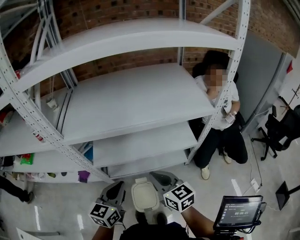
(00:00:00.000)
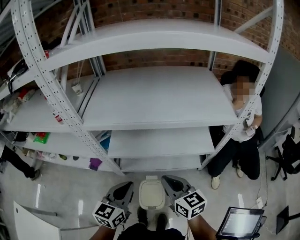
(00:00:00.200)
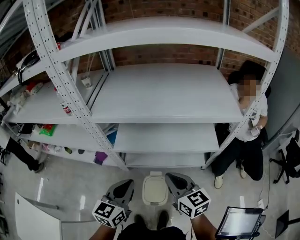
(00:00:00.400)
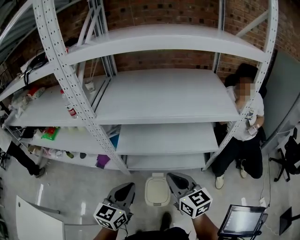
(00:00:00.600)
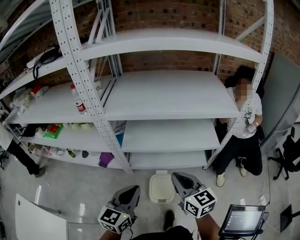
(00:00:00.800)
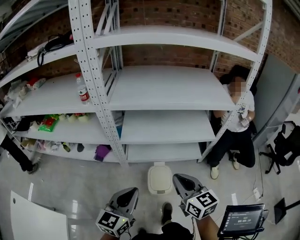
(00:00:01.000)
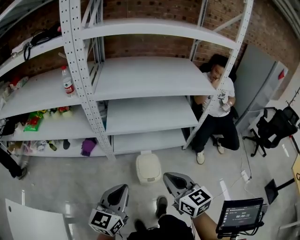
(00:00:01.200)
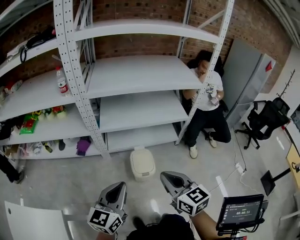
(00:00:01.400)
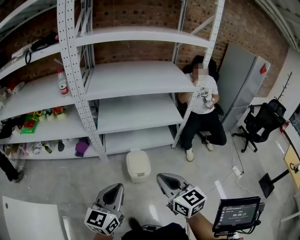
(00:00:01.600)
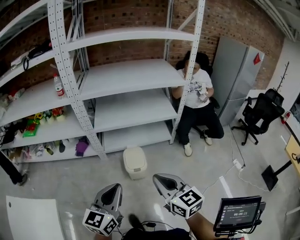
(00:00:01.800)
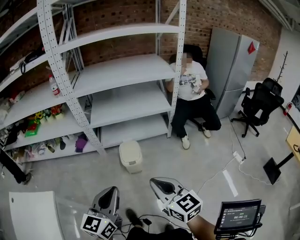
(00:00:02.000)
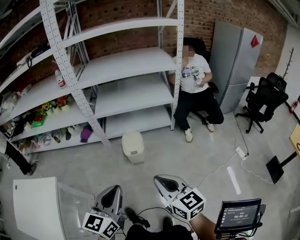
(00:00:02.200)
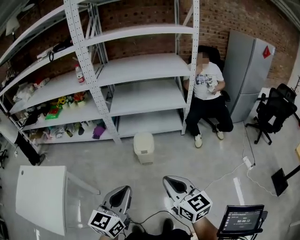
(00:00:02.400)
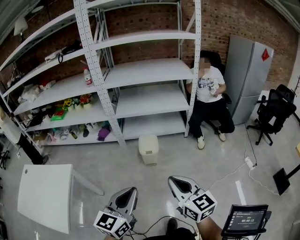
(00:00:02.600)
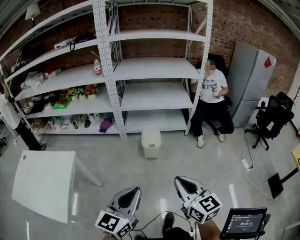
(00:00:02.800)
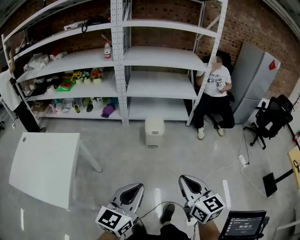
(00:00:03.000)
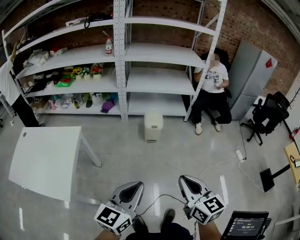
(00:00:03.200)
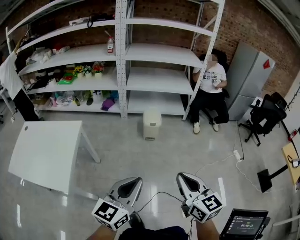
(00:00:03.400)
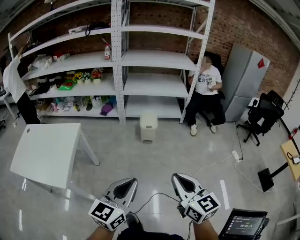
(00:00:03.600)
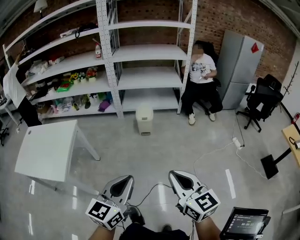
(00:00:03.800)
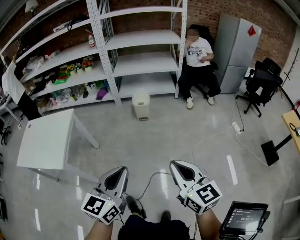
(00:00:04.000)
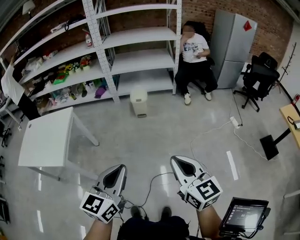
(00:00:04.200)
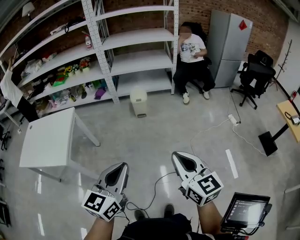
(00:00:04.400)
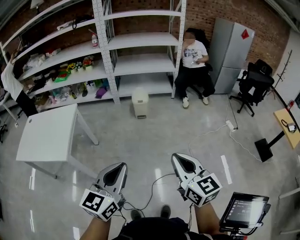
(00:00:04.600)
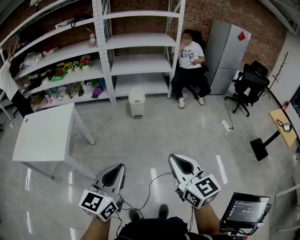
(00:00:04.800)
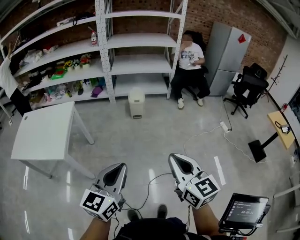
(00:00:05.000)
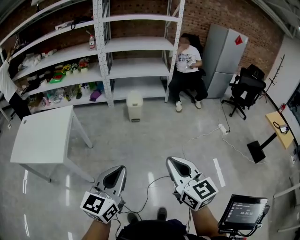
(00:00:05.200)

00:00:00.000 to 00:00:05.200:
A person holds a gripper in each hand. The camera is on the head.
00:00:00.000 to 00:00:01.800: The two grippers travel together, backward, some 40 cm.
00:00:01.800 to 00:00:03.400: The two grippers travel together, backward, some 50 cm.
00:00:03.400 to 00:00:05.200: The two grippers go roughly 20 cm backward.

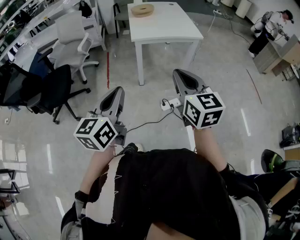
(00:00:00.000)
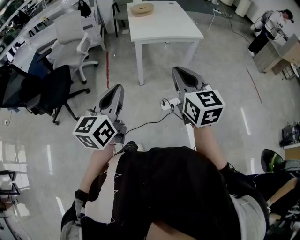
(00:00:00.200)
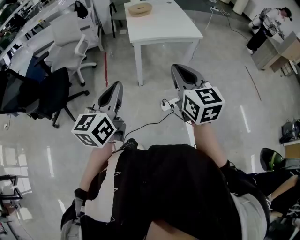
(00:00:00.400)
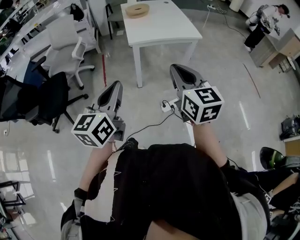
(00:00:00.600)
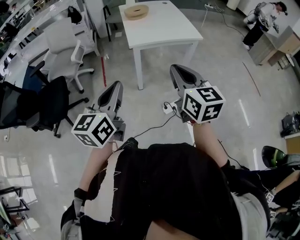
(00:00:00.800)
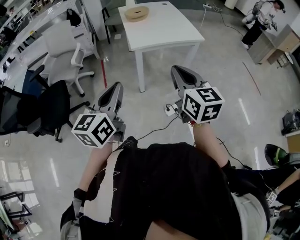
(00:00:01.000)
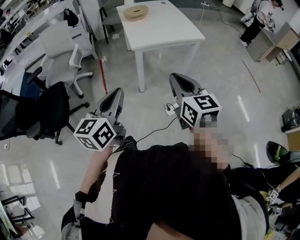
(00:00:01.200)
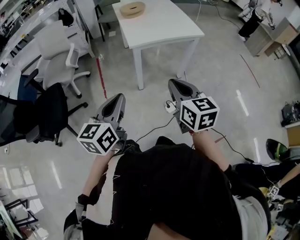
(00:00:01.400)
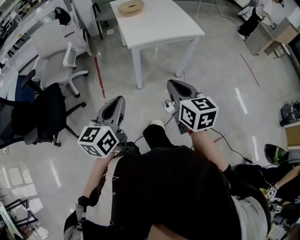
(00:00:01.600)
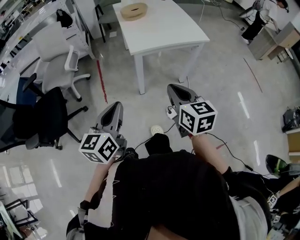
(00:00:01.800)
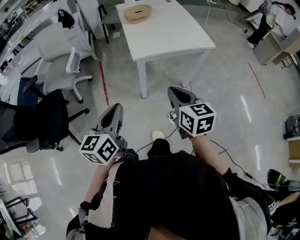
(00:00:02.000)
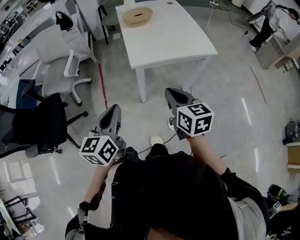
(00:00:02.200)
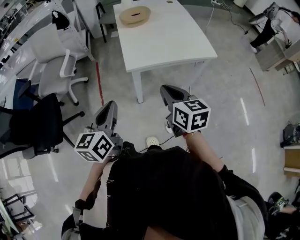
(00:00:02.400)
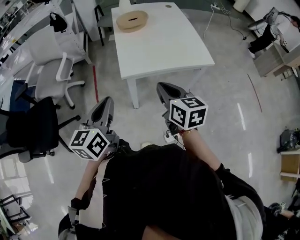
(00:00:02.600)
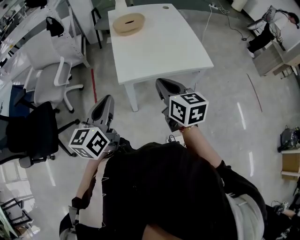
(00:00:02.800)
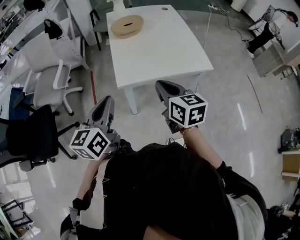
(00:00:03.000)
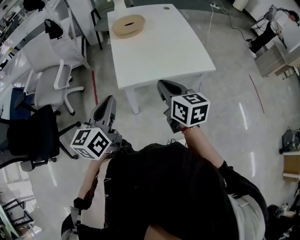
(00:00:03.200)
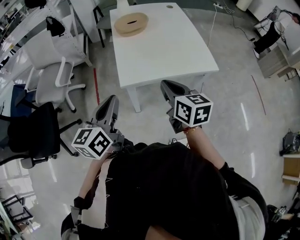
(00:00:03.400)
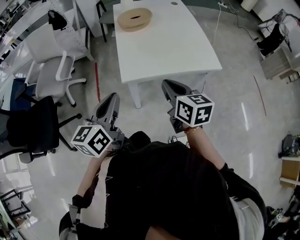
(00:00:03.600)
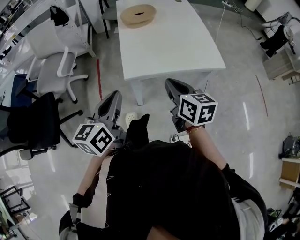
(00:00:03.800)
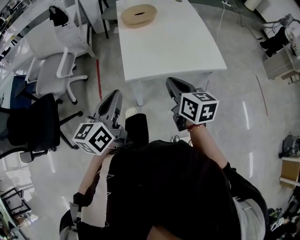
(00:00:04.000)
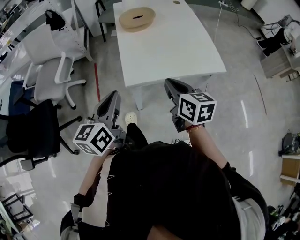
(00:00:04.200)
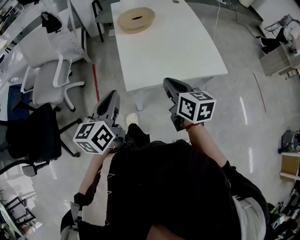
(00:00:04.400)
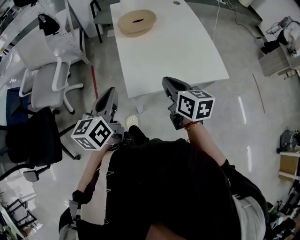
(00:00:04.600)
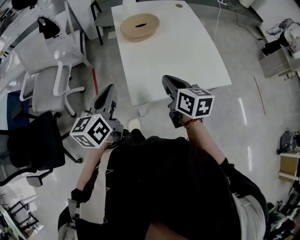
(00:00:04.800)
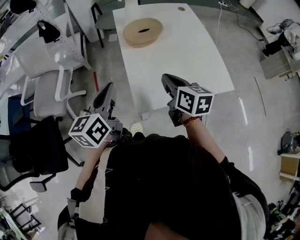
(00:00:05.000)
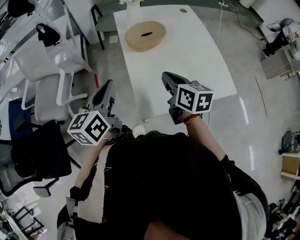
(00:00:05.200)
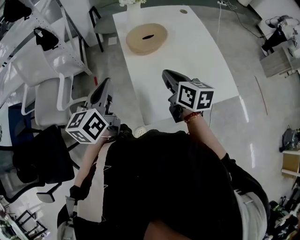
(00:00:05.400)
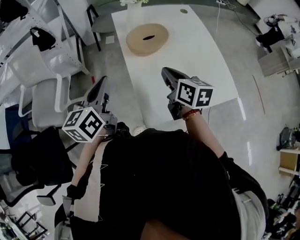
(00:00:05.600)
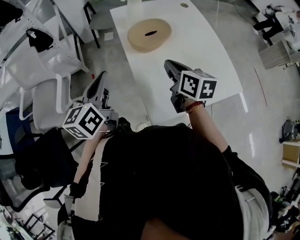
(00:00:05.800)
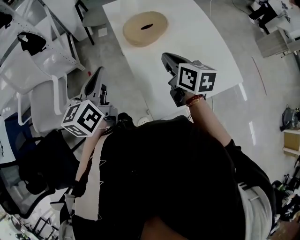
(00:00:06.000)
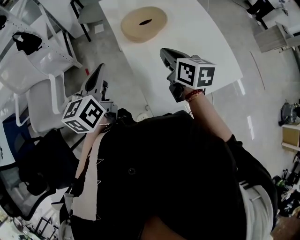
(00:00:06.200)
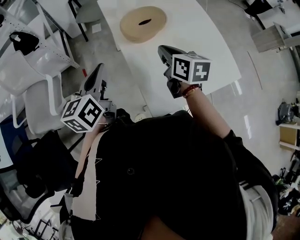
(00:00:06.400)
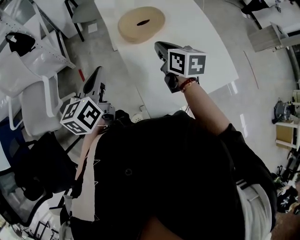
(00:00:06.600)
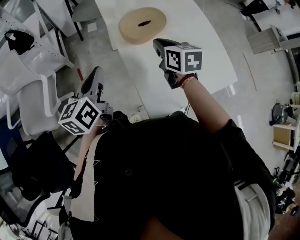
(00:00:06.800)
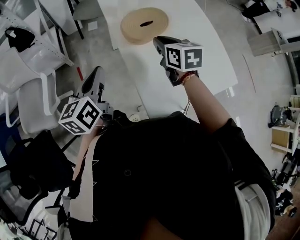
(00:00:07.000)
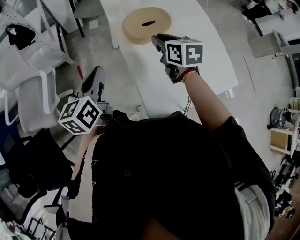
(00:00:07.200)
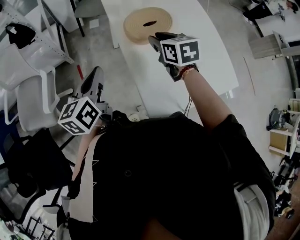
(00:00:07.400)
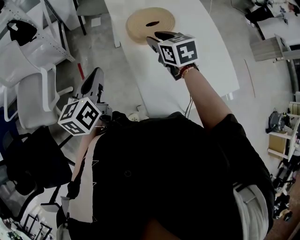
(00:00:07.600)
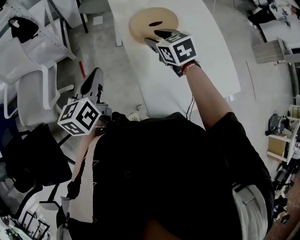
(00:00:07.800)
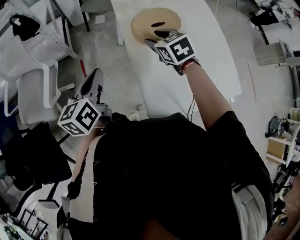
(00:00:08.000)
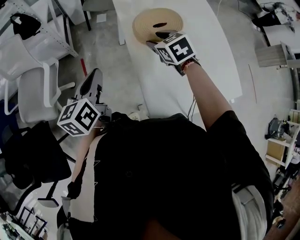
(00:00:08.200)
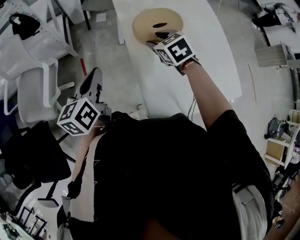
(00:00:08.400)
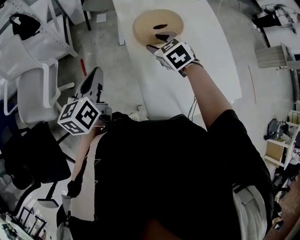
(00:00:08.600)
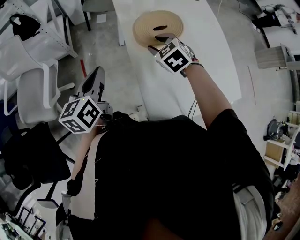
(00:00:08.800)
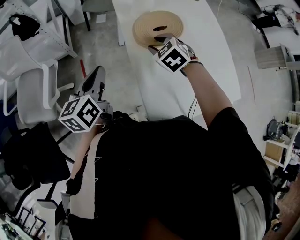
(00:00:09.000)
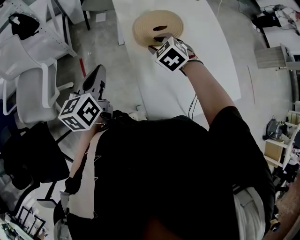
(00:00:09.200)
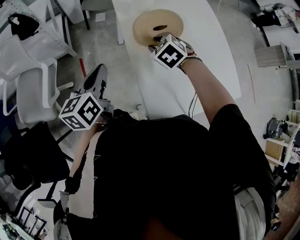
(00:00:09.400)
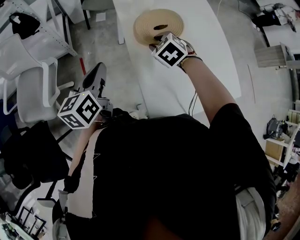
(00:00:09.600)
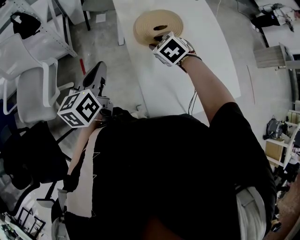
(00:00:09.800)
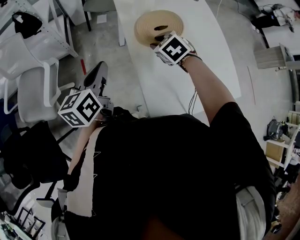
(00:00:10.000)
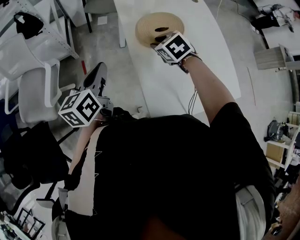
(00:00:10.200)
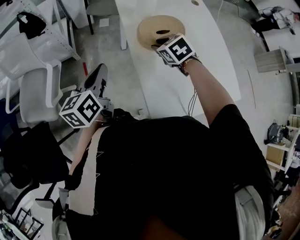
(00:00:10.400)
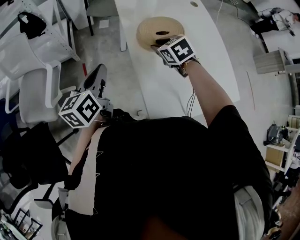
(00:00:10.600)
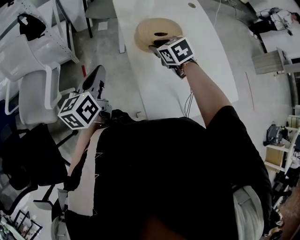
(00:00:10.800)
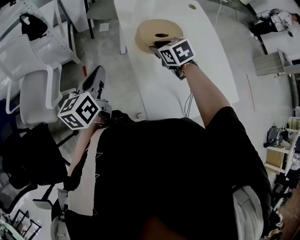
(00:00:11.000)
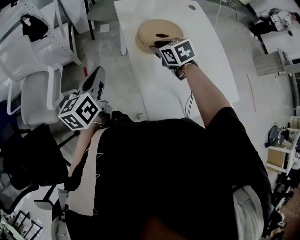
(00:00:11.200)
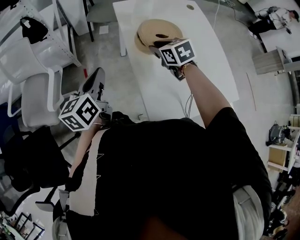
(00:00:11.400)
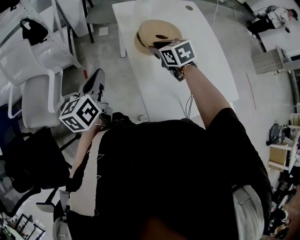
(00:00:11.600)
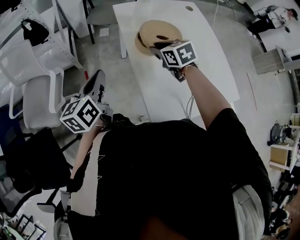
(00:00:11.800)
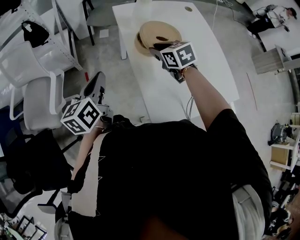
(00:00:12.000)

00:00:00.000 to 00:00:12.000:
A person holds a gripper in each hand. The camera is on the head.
00:00:00.000 to 00:00:01.600: Both grippers move forward, to the left and downward, approximately 20 cm.
00:00:01.600 to 00:00:03.000: Both grippers travel together forward, approximately 30 cm.
00:00:03.000 to 00:00:04.400: Both grippers move forward, about 10 cm.
00:00:04.400 to 00:00:06.000: The left gripper travels forward and to the left by about 30 cm; the right gripper shifts approximately 25 cm forward.
00:00:06.000 to 00:00:07.600: The right gripper travels forward by roughly 10 cm, rotates roughly 30 degrees, and opens its fingers. The left gripper travels downward by about 5 cm.
00:00:07.600 to 00:00:09.000: The right gripper goes approximately 5 cm downward, and rotates about 30 degrees.
00:00:09.000 to 00:00:10.400: The grippers move only a little.
00:00:10.400 to 00:00:12.000: There are only small adjustments of the grippers.

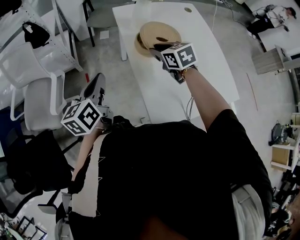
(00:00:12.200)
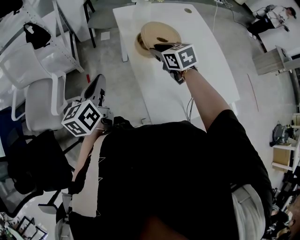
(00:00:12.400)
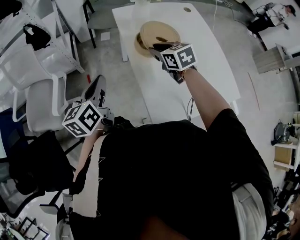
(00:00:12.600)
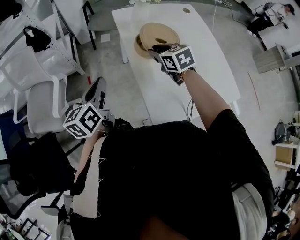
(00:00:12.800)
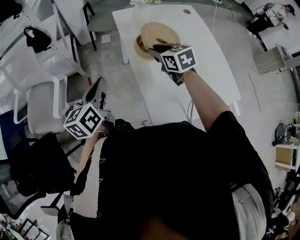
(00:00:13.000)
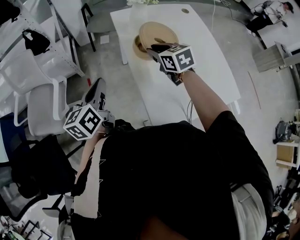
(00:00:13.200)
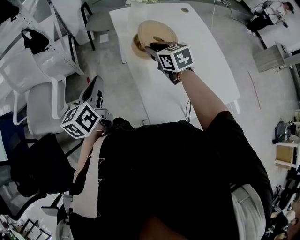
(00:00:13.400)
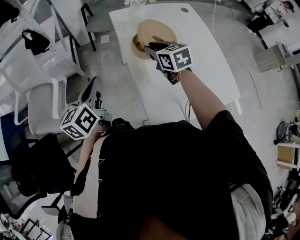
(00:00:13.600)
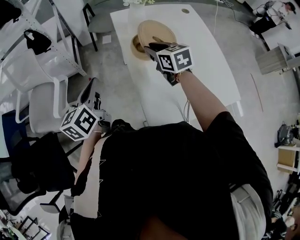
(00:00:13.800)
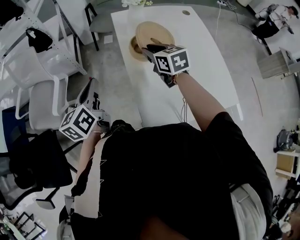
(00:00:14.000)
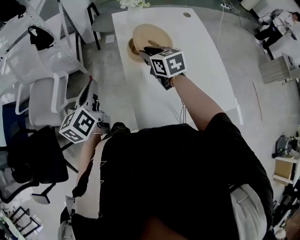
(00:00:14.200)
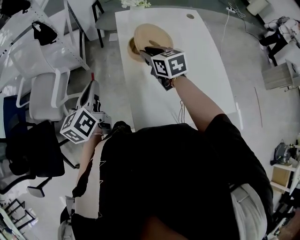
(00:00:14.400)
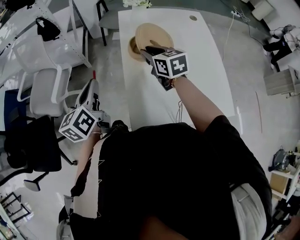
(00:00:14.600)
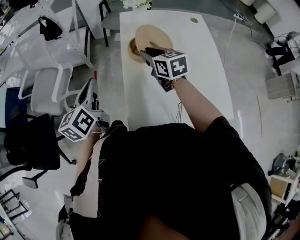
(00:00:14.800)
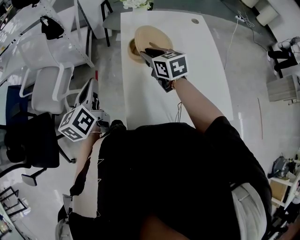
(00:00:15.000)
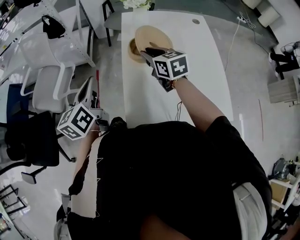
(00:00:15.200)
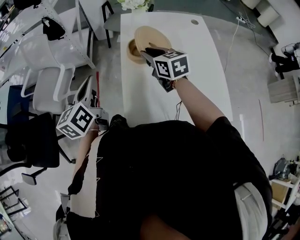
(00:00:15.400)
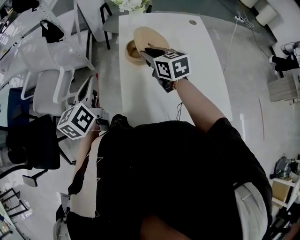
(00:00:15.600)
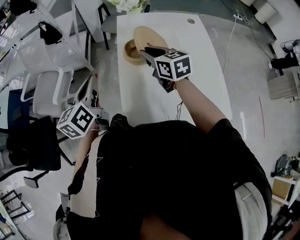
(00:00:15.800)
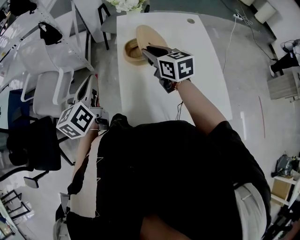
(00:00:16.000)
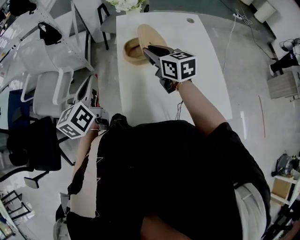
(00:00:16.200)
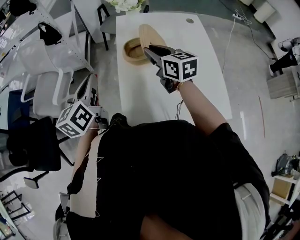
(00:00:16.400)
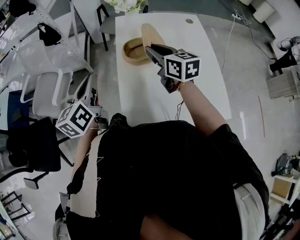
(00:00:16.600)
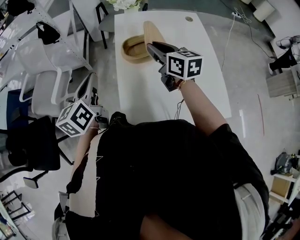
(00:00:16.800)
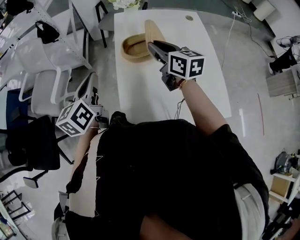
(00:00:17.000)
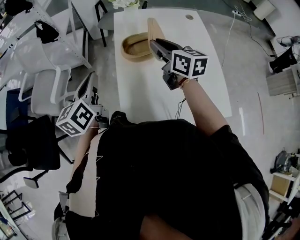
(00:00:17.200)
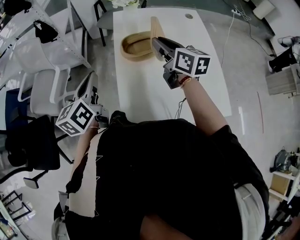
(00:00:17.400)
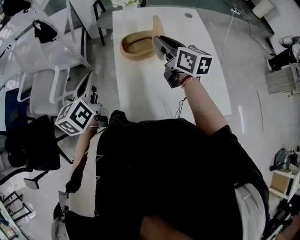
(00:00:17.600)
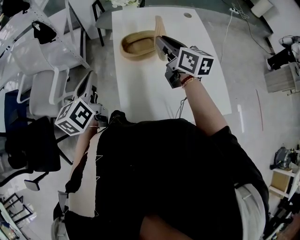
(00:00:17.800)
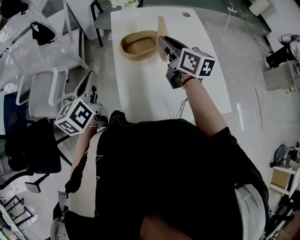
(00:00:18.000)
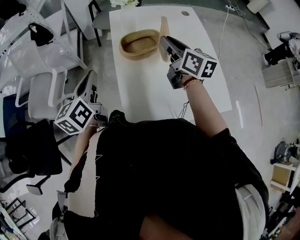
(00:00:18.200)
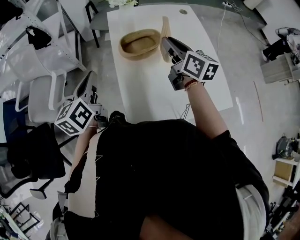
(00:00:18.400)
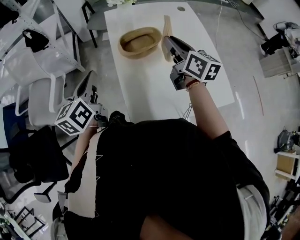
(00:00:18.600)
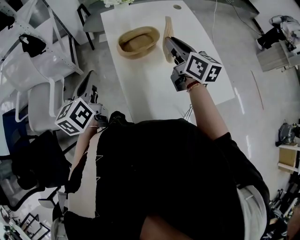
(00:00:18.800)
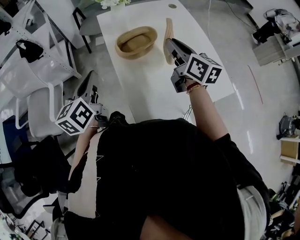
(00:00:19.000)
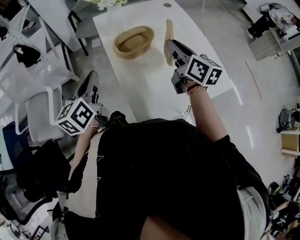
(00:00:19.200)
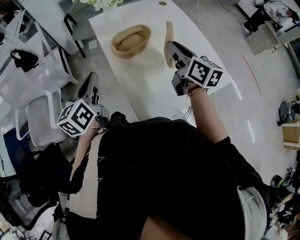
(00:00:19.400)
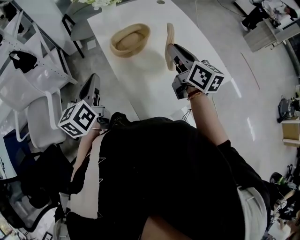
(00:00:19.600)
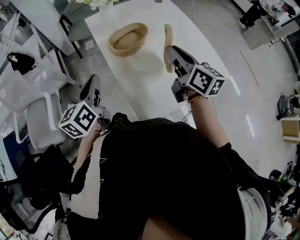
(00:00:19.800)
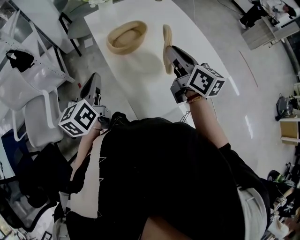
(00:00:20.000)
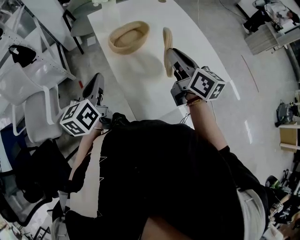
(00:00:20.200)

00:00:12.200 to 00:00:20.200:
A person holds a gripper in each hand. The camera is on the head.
00:00:12.200 to 00:00:13.800: The grippers make only small movements.
00:00:13.800 to 00:00:15.400: The left gripper moves backward, roughly 5 cm.
00:00:15.400 to 00:00:17.000: The right gripper heads to the right, covering some 5 cm.
00:00:17.000 to 00:00:18.600: The grippers move only a little.
00:00:18.600 to 00:00:20.200: The right gripper goes roughly 10 cm backward.
